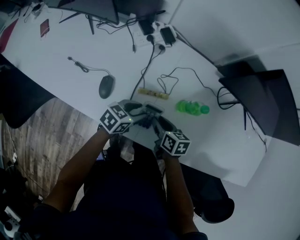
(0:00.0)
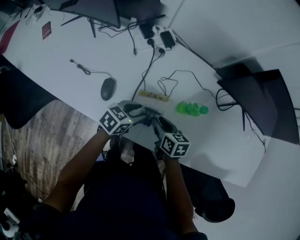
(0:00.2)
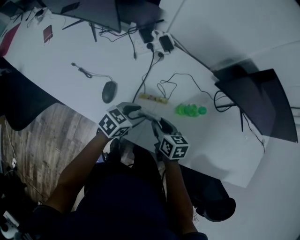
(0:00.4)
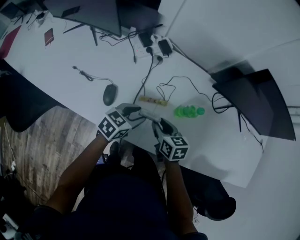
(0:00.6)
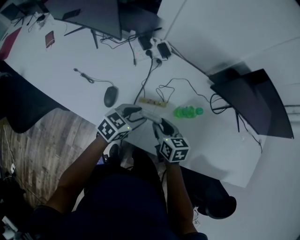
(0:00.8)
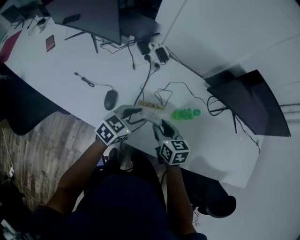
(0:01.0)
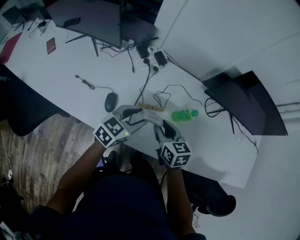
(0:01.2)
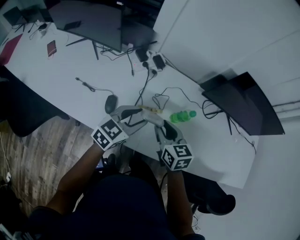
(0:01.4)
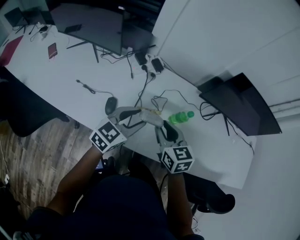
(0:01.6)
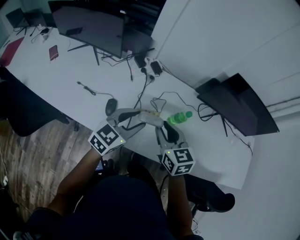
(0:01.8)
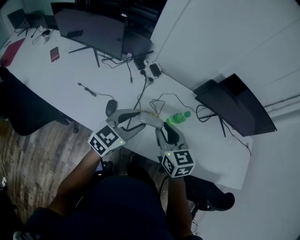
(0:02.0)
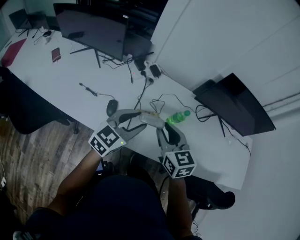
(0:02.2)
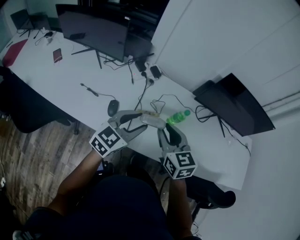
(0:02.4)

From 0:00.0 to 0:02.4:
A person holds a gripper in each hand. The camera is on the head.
From 0:00.0 to 0:01.2: The two grippers go approximately 15 cm upward. The left gripper rotates about 20 degrees, while the right gripper rotates about 20 degrees.
From 0:01.2 to 0:02.4: The two grippers go about 15 cm upward and backward.

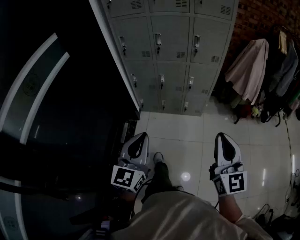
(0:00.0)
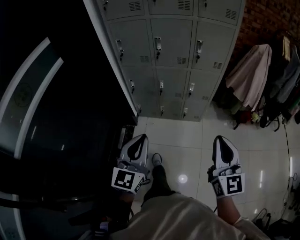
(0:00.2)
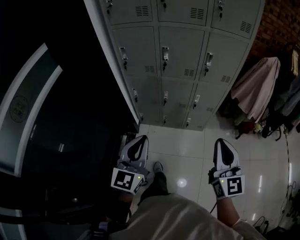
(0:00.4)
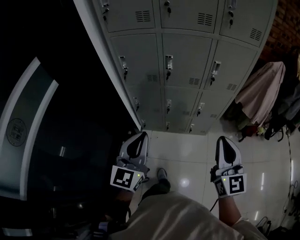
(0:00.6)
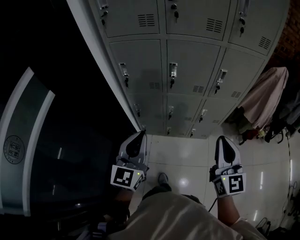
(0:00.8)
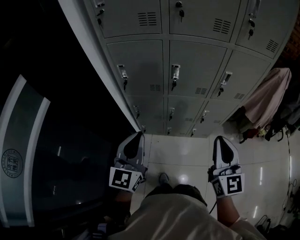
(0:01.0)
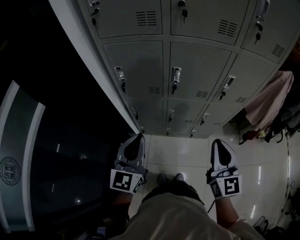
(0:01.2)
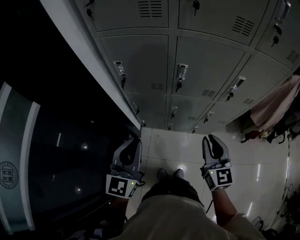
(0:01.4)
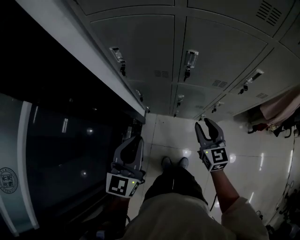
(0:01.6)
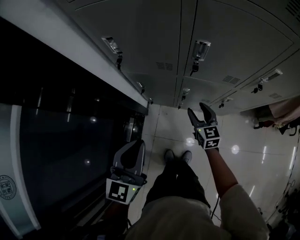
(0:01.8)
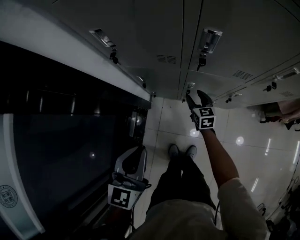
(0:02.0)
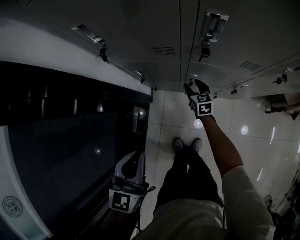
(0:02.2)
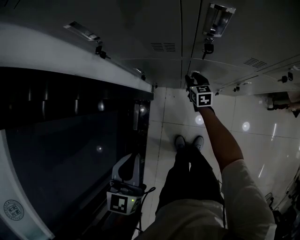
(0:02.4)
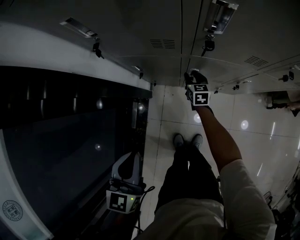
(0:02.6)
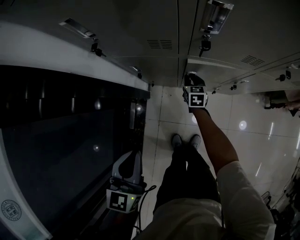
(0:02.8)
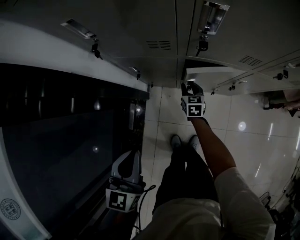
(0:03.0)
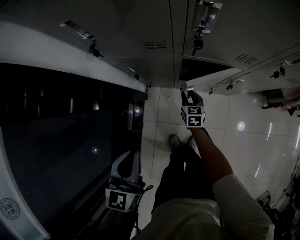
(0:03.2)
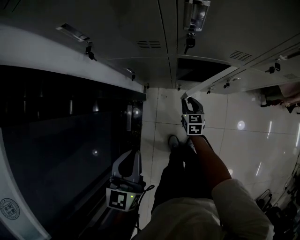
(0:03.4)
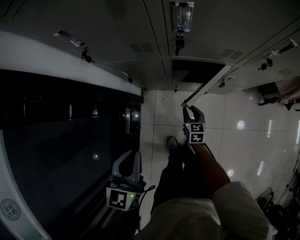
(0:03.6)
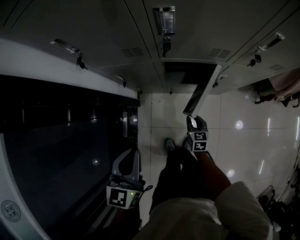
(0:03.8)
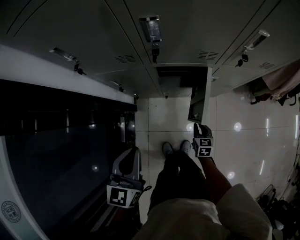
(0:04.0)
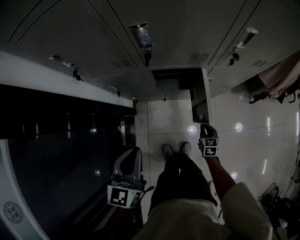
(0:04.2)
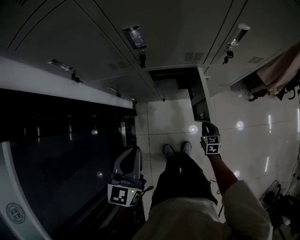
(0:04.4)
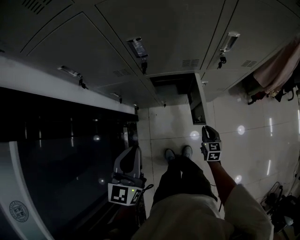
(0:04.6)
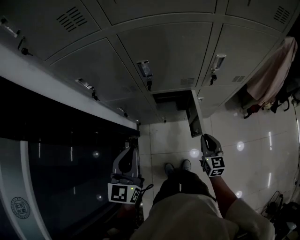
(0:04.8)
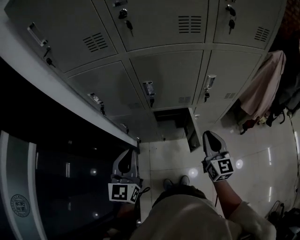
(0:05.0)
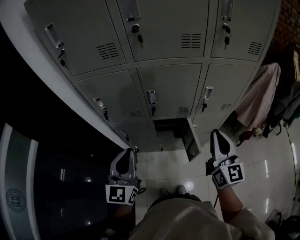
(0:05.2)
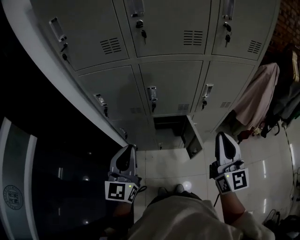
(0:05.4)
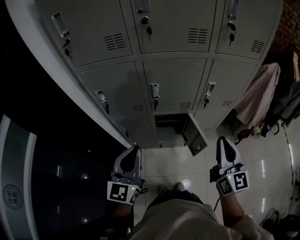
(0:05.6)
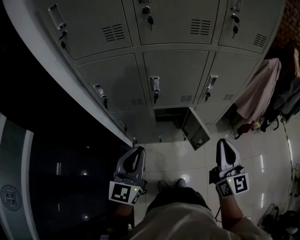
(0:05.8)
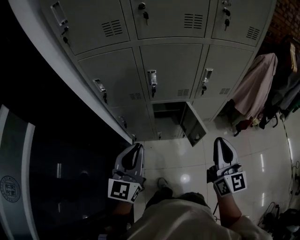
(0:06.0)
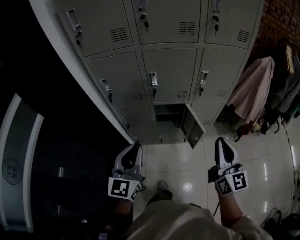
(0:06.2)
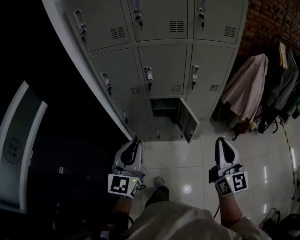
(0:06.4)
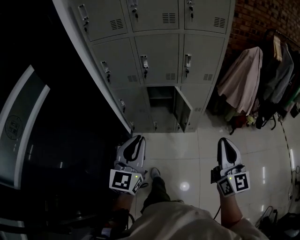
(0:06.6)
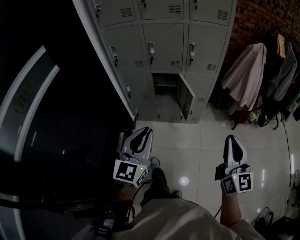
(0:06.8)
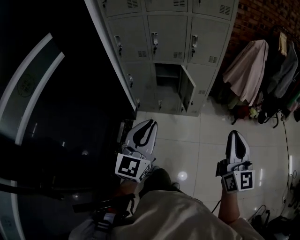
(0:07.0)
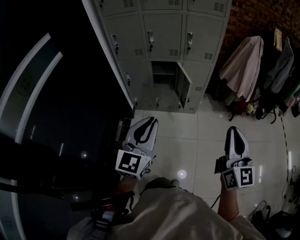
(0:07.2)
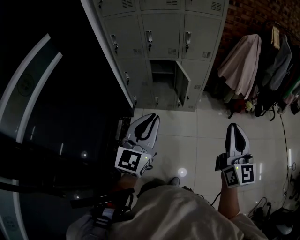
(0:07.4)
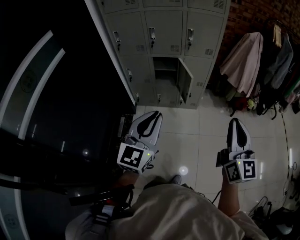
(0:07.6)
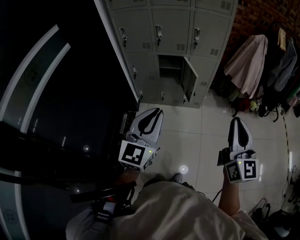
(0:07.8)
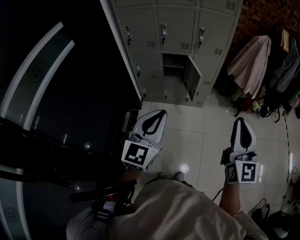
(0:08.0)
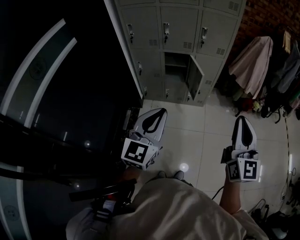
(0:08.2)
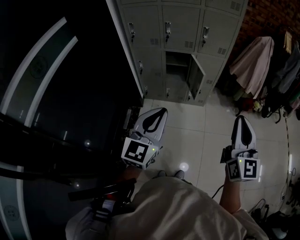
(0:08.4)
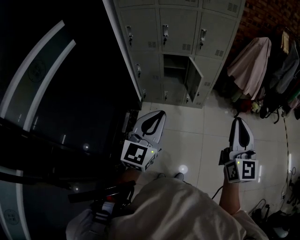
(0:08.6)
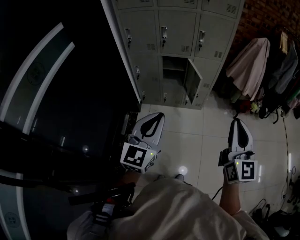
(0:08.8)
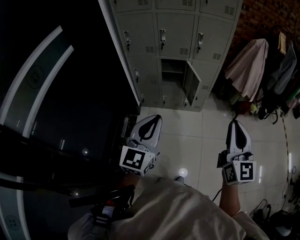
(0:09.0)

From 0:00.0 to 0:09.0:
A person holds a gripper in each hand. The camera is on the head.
From 0:00.0 to 0:01.6: Both grippers are carried forward, about 50 cm. The right gripper moves downward, approximately 30 cm, swivels approximately 20 degrees, and opens.
From 0:01.6 to 0:03.0: The right gripper moves downward and forward, about 50 cm, turns by about 30 degrees, and opens and closes again, while the left gripper is displaced downward by approximately 25 cm.
From 0:03.0 to 0:04.4: The left gripper heads to the right and upward, covering approximately 15 cm; the right gripper shifts some 30 cm to the right and backward, and closes.
From 0:04.4 to 0:06.0: The left gripper shifts about 25 cm upward. The right gripper moves upward, about 70 cm, and points its fingers about 50 degrees further upward.
From 0:06.0 to 0:07.6: The grippers both shift backward and to the right by some 40 cm.
From 0:07.6 to 0:09.0: Both grippers travel together to the left, roughly 5 cm.

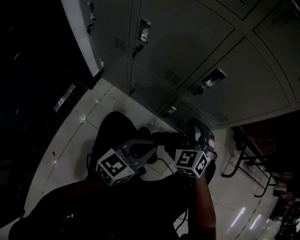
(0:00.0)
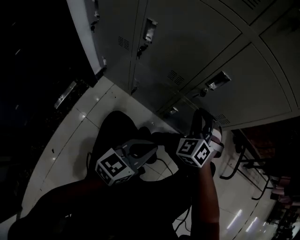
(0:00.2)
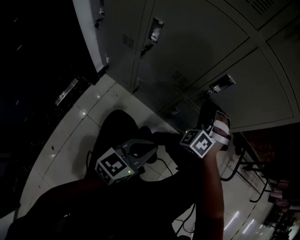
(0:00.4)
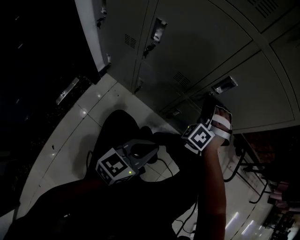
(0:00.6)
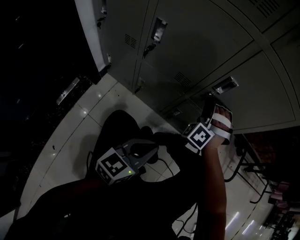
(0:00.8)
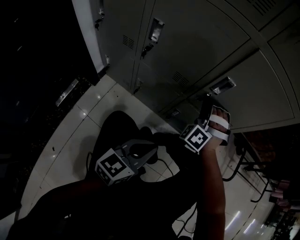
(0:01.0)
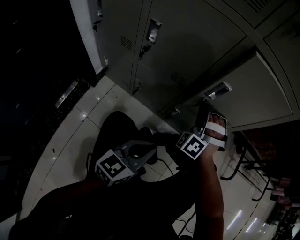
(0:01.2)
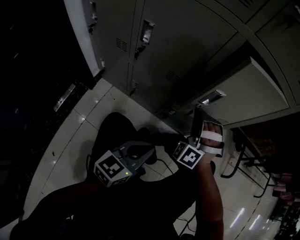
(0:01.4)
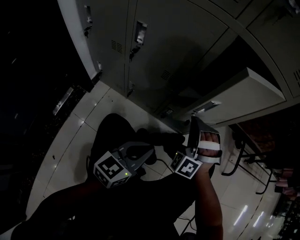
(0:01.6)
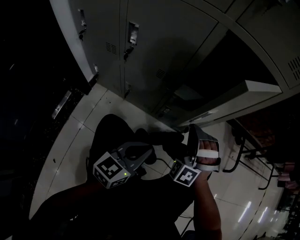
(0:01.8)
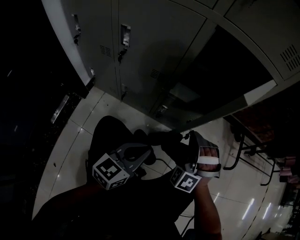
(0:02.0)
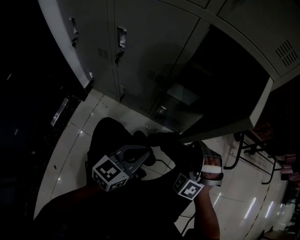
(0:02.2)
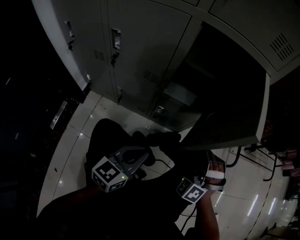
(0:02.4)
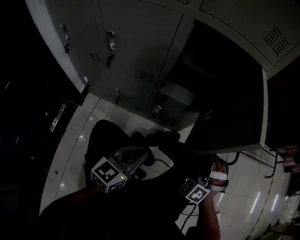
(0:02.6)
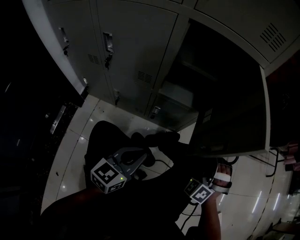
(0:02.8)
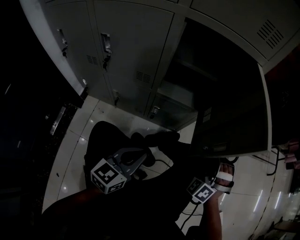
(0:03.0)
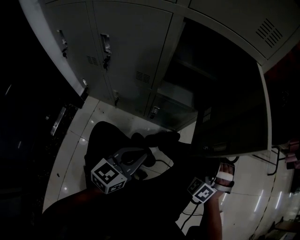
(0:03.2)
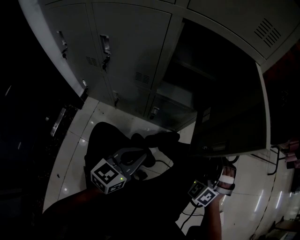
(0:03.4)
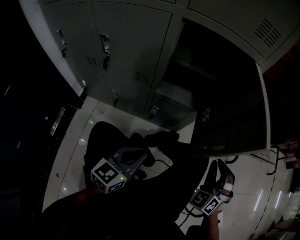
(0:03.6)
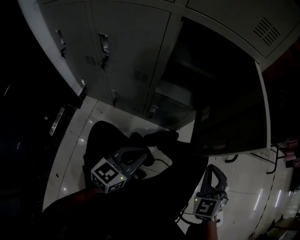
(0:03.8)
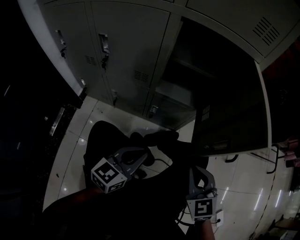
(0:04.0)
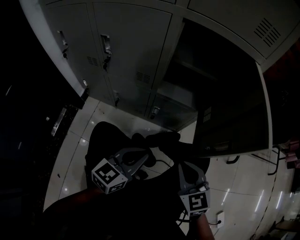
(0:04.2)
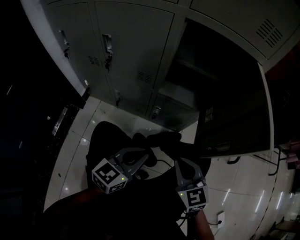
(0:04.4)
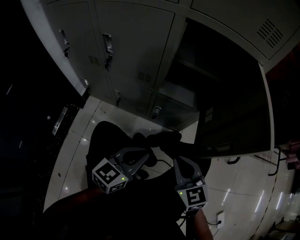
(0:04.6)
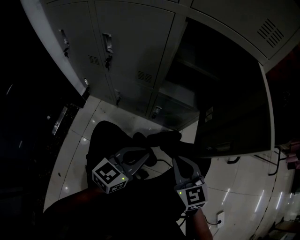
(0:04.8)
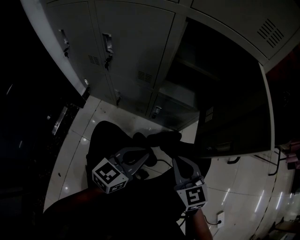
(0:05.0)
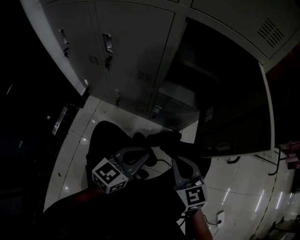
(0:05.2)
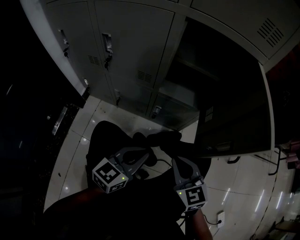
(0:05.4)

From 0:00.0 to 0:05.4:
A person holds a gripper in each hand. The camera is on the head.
From 0:00.0 to 0:01.4: The right gripper travels forward and back again, about 10 cm each way, and rotates some 40 degrees.
From 0:01.4 to 0:02.8: The right gripper goes some 25 cm to the right, and rotates about 20 degrees.
From 0:02.8 to 0:04.0: The right gripper goes some 10 cm backward, and twists approximately 50 degrees clockwise, seen from behind.
From 0:04.0 to 0:05.4: The right gripper heads to the left, covering about 10 cm.

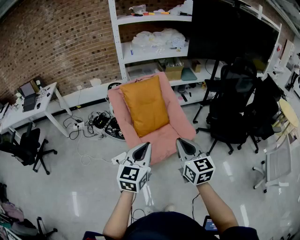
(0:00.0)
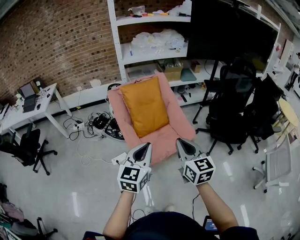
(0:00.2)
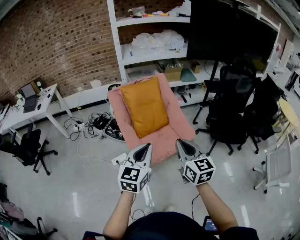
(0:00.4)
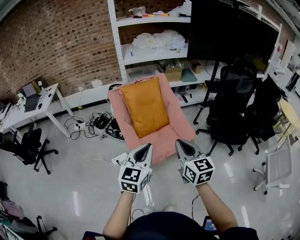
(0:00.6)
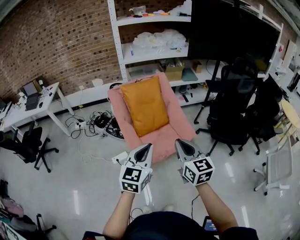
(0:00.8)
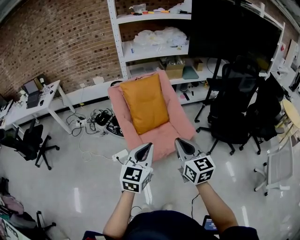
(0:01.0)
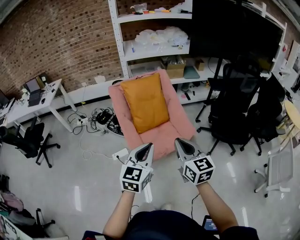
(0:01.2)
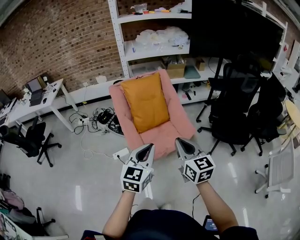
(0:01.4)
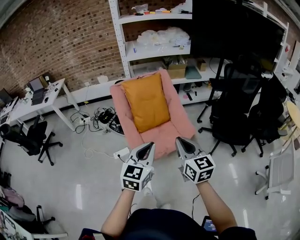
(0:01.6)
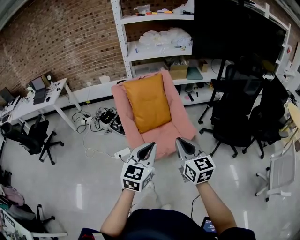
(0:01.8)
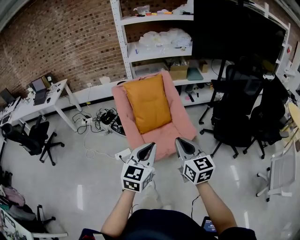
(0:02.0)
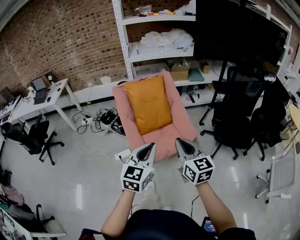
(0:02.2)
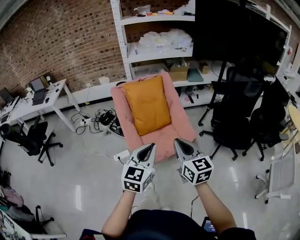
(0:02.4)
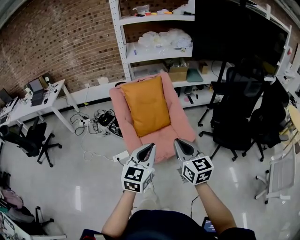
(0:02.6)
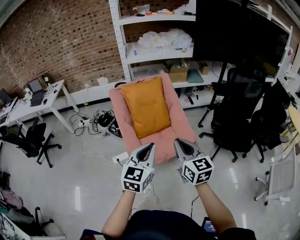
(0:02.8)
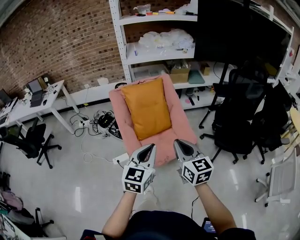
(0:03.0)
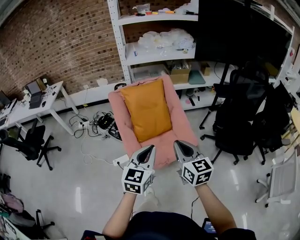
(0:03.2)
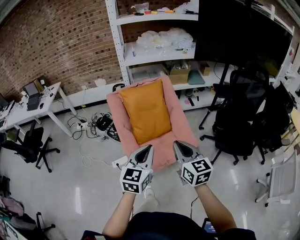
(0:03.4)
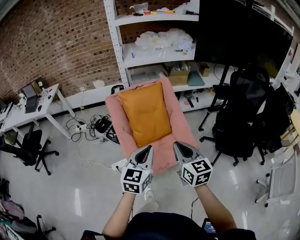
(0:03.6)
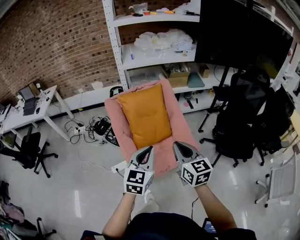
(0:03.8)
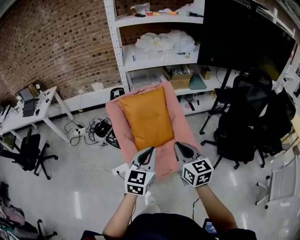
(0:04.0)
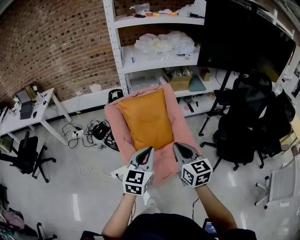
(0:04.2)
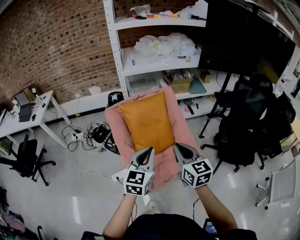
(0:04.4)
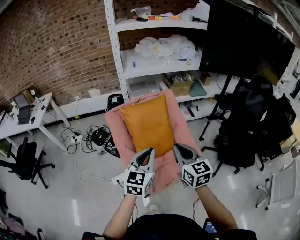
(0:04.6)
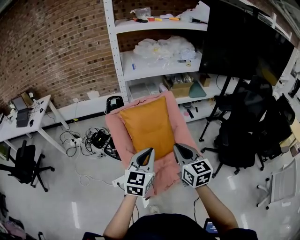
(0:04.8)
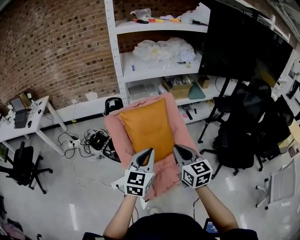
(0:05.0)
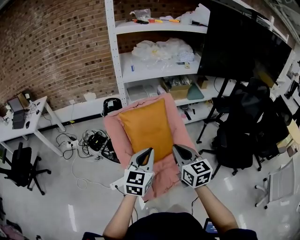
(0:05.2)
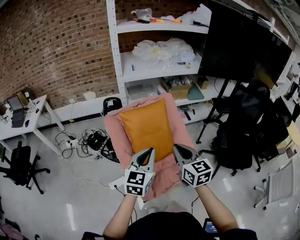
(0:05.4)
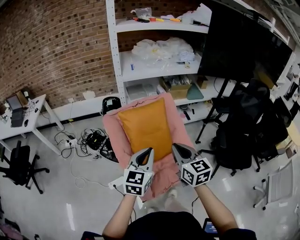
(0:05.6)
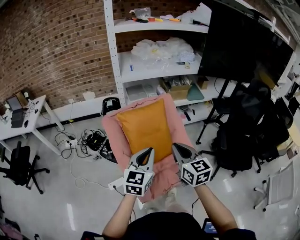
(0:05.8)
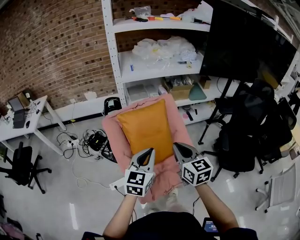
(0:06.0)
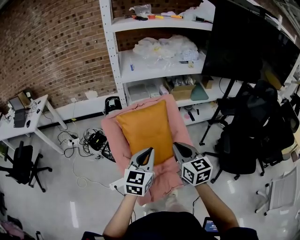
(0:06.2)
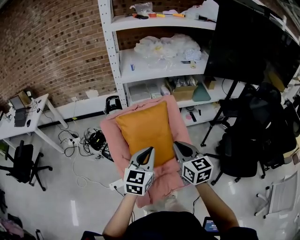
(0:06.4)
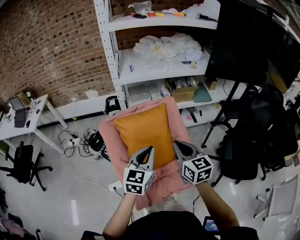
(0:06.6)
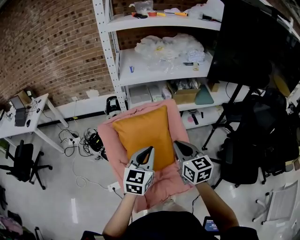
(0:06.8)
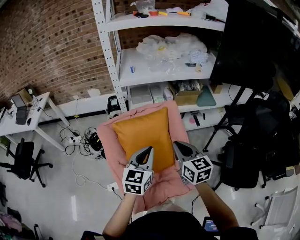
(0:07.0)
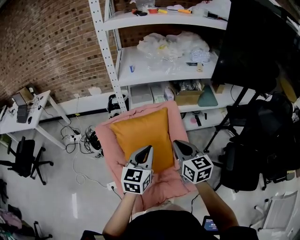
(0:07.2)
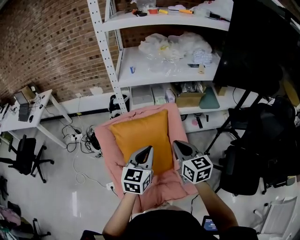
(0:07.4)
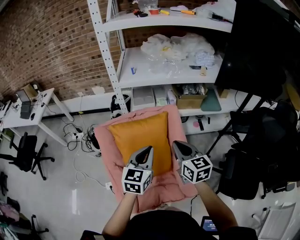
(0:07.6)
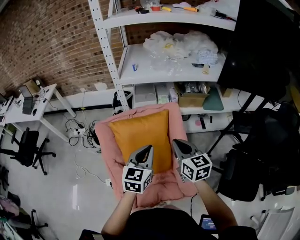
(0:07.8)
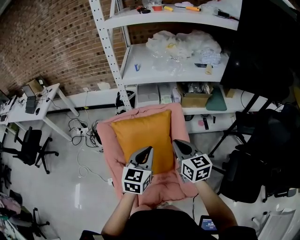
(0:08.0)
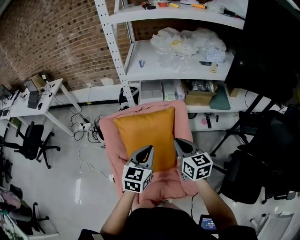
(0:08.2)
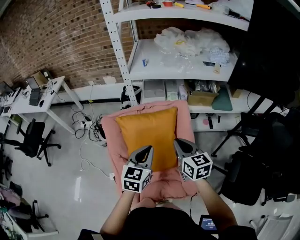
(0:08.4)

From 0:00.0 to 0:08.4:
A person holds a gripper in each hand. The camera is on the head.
From 0:00.0 to 0:01.4: The grippers both shift to the right by some 5 cm.
From 0:01.4 to 0:02.8: Both grippers move forward, some 5 cm.
From 0:02.8 to 0:04.2: Both grippers move forward, approximately 20 cm.
From 0:04.2 to 0:05.6: The grippers both shift forward by about 10 cm.
From 0:05.6 to 0:07.0: The grippers both shift forward and to the right by approximately 20 cm.
From 0:07.0 to 0:08.4: The left gripper changes place by some 5 cm. The right gripper is displaced forward by some 5 cm.
